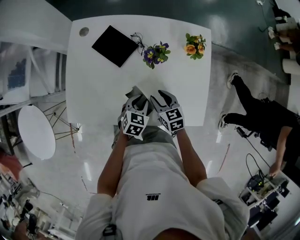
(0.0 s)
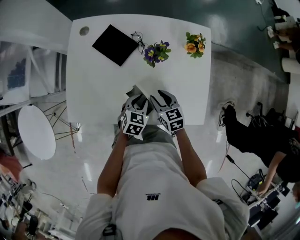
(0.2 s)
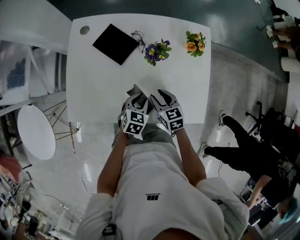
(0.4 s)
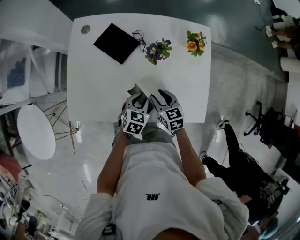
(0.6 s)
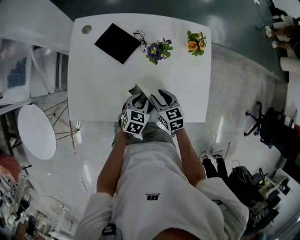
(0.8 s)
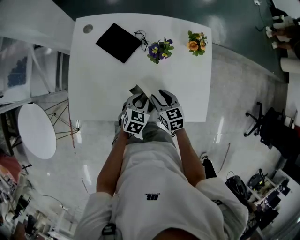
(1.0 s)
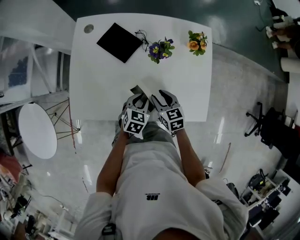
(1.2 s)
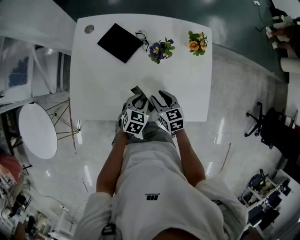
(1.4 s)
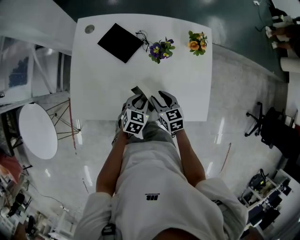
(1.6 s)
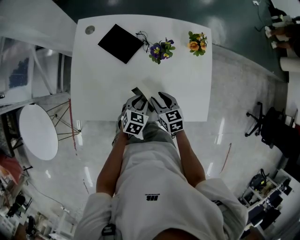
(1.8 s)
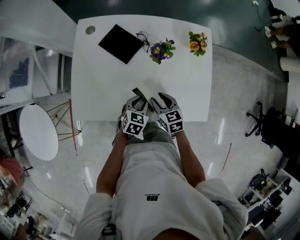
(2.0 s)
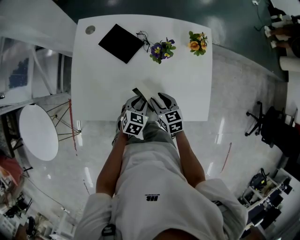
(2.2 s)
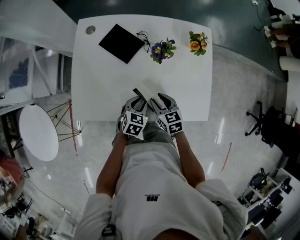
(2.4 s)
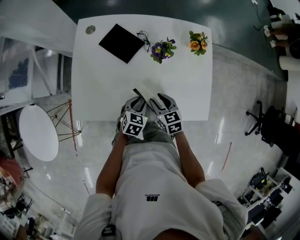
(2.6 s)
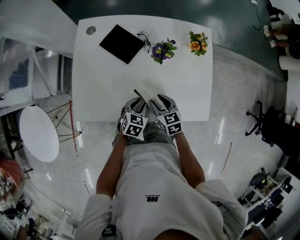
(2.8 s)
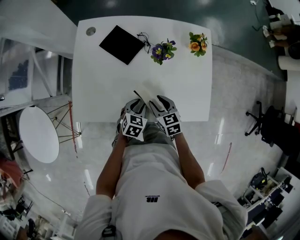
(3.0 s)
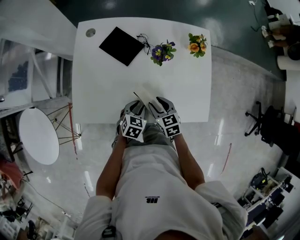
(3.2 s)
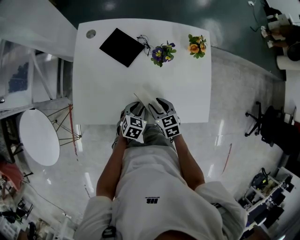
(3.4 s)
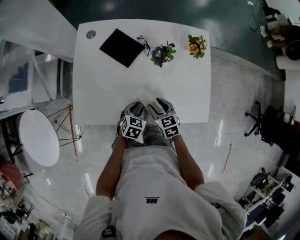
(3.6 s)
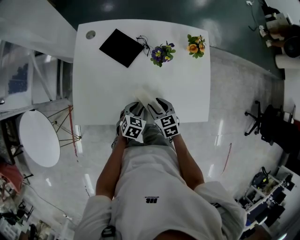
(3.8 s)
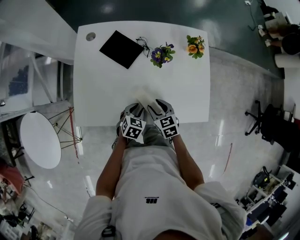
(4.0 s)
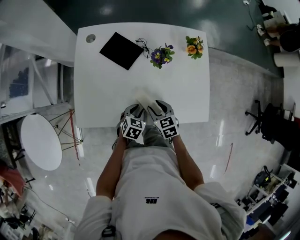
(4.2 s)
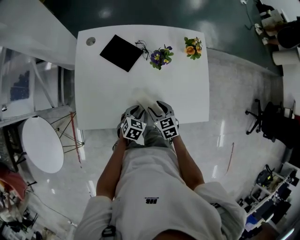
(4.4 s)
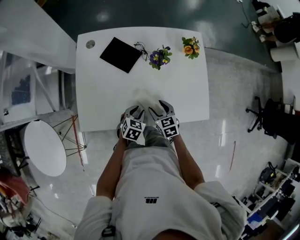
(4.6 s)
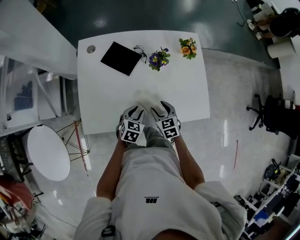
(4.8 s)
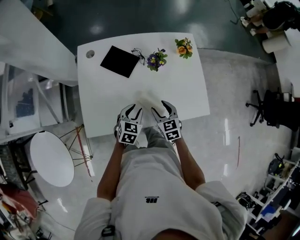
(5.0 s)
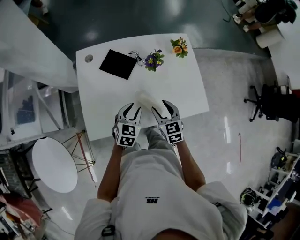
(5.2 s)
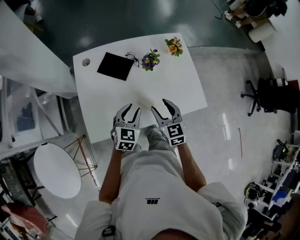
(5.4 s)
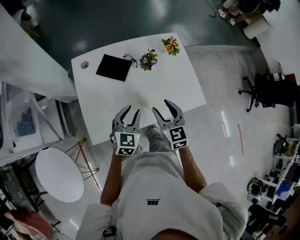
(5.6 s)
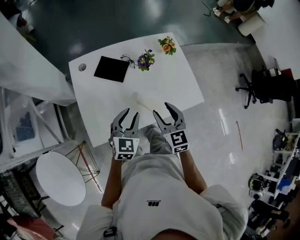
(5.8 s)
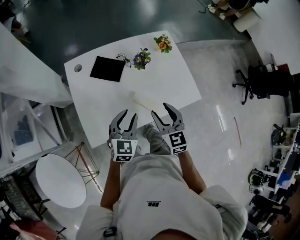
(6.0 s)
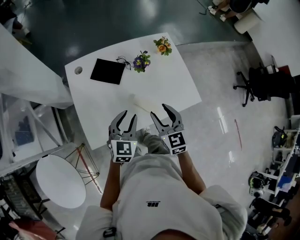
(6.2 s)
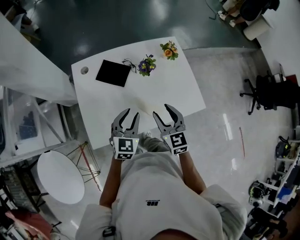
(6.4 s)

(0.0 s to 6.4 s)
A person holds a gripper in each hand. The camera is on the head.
0.0 s - 1.6 s: There are only small adjustments of the grippers.
1.6 s - 3.2 s: The grippers make only small movements.
3.2 s - 4.8 s: There are only small adjustments of the grippers.
4.8 s - 6.4 s: The grippers both shift upward by approximately 20 cm. The left gripper turns by some 30 degrees, while the right gripper rotates roughly 30 degrees.

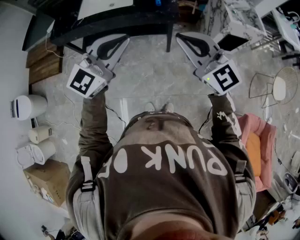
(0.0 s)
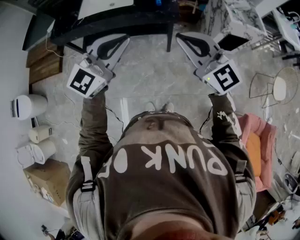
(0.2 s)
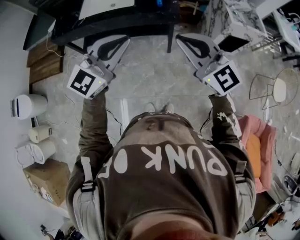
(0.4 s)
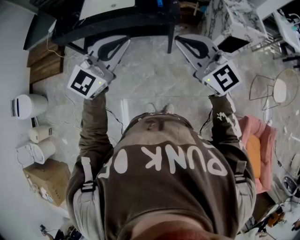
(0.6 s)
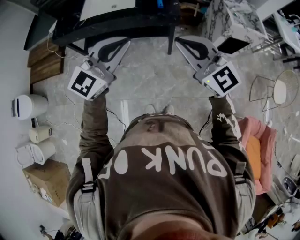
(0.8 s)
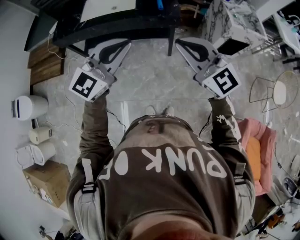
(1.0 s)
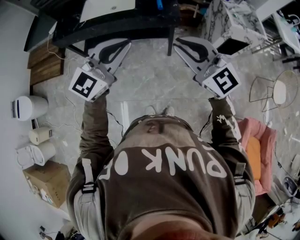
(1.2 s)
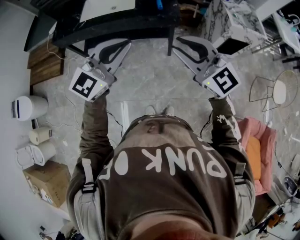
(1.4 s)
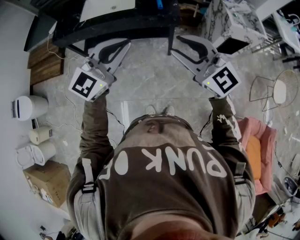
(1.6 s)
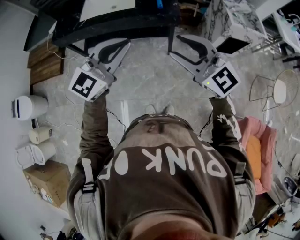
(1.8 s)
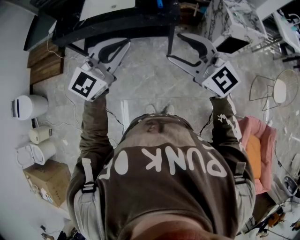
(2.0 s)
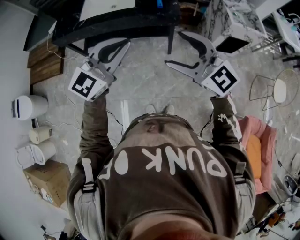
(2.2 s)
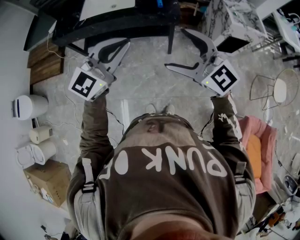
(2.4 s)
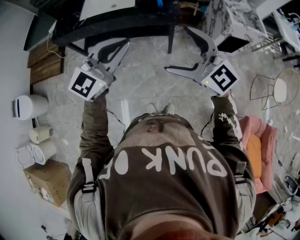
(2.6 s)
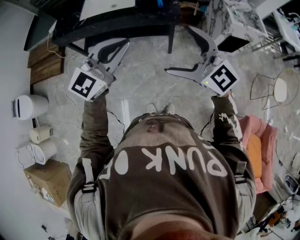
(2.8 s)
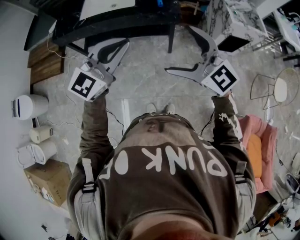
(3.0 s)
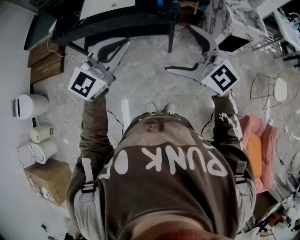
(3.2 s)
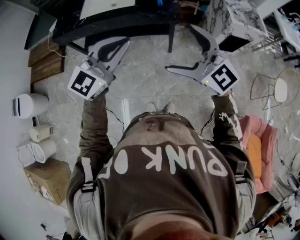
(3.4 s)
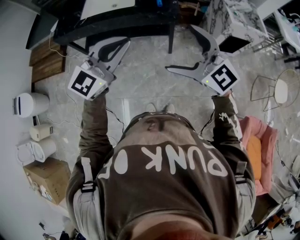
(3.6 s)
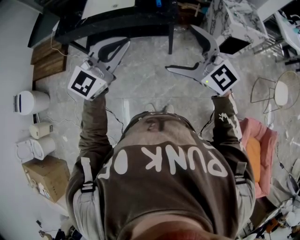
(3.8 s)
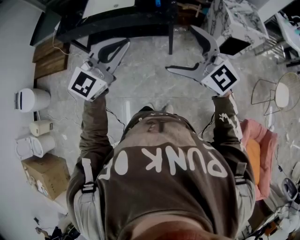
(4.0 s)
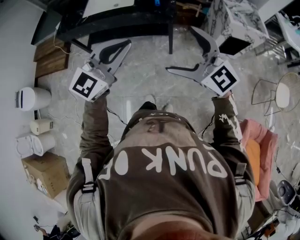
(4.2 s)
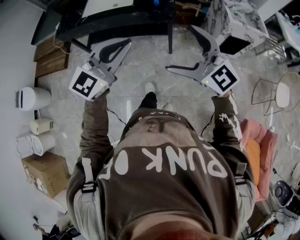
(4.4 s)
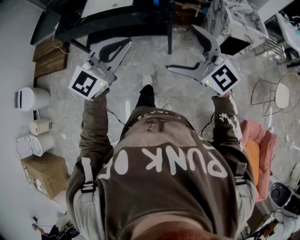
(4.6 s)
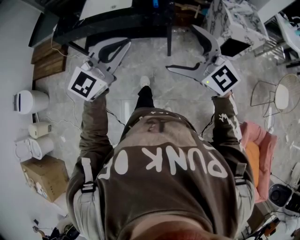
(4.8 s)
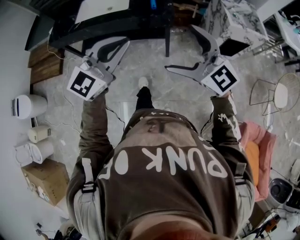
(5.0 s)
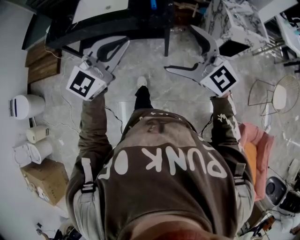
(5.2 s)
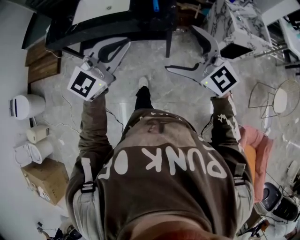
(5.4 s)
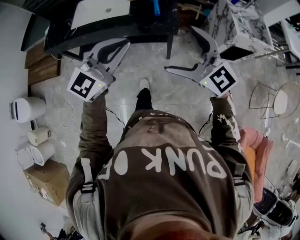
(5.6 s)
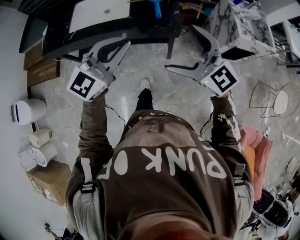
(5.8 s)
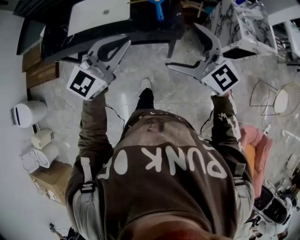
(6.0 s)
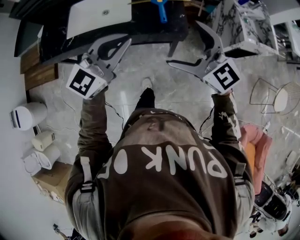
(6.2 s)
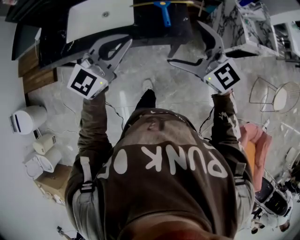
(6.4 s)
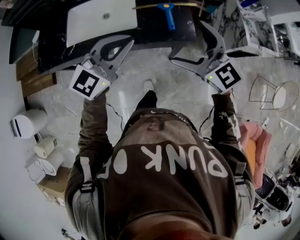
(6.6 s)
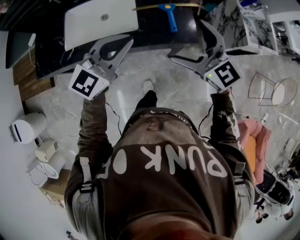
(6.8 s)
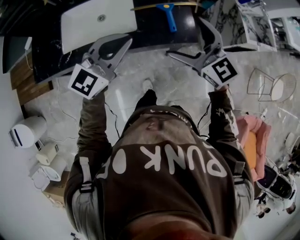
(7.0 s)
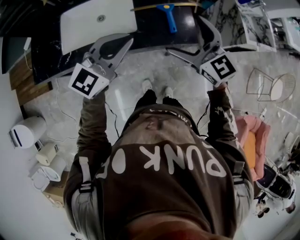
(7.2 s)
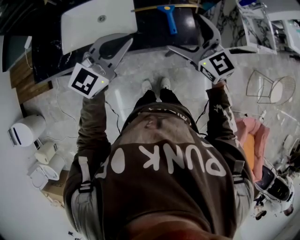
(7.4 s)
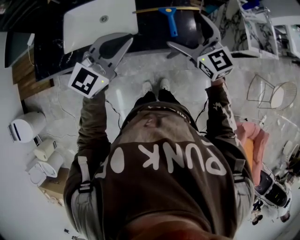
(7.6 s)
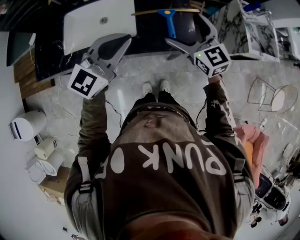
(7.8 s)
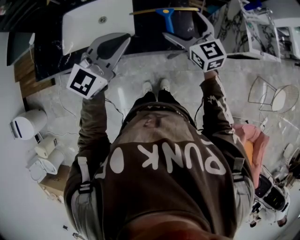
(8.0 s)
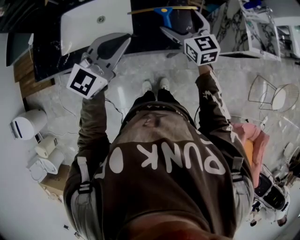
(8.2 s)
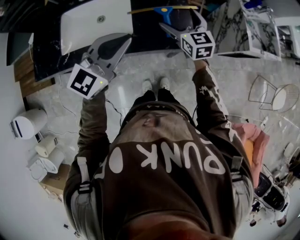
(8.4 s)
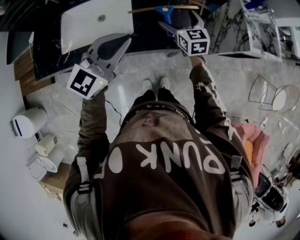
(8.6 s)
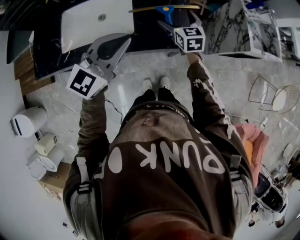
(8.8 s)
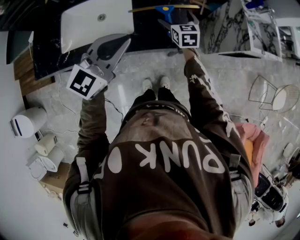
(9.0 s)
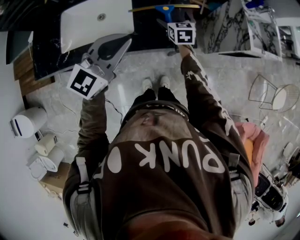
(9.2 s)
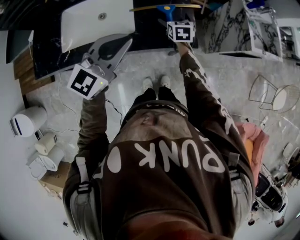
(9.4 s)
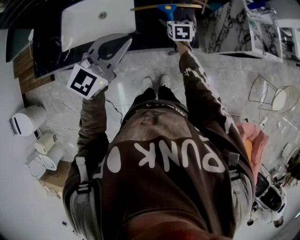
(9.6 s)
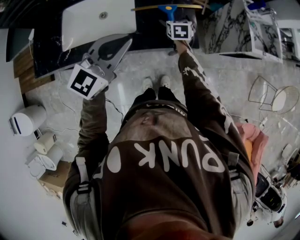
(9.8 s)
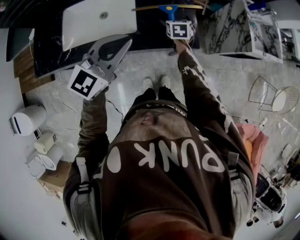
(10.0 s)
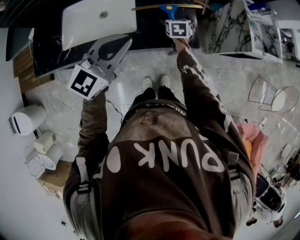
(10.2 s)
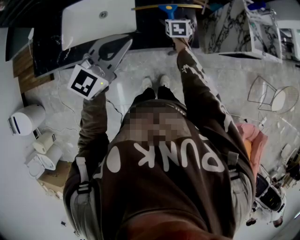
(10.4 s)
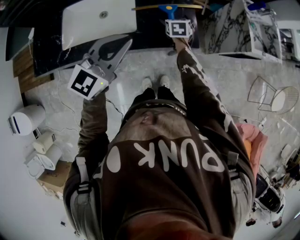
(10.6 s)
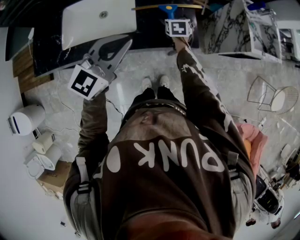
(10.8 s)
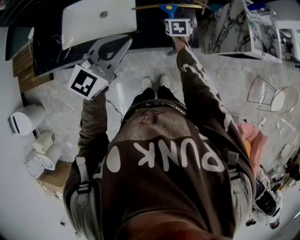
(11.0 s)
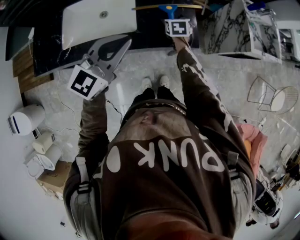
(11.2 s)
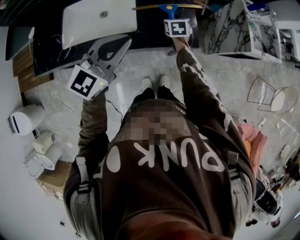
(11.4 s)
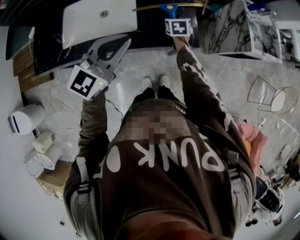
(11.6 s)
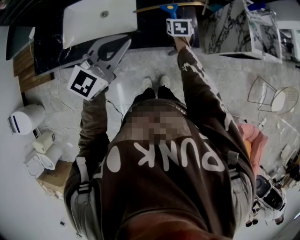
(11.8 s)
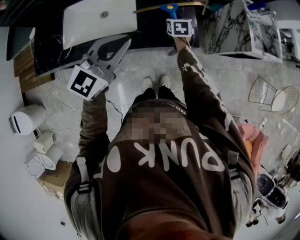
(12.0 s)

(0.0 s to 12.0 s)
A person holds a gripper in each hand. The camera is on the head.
0.0 s - 1.6 s: There are only small adjustments of the grippers.
1.6 s - 3.0 s: The right gripper opens its fingers.
3.0 s - 4.4 s: The right gripper moves to the right, approximately 5 cm; the left gripper is displaced to the right and backward by some 10 cm.
4.4 s - 6.0 s: The two grippers go roughly 30 cm forward.
6.0 s - 7.6 s: The left gripper goes roughly 20 cm forward and to the left. Meanwhile the right gripper goes about 20 cm forward.
7.6 s - 9.0 s: The right gripper travels downward and forward by roughly 20 cm, and turns by about 30 degrees.
9.0 s - 10.4 s: The right gripper moves downward, about 10 cm, and rotates about 20 degrees.
10.4 s - 12.0 s: The right gripper closes its fingers.

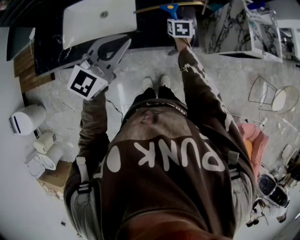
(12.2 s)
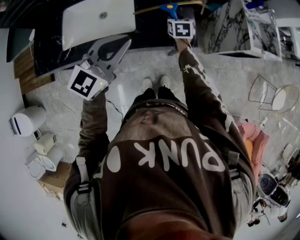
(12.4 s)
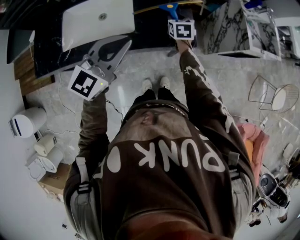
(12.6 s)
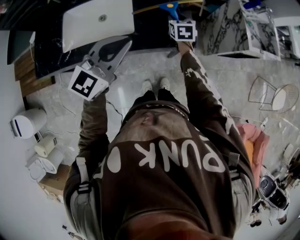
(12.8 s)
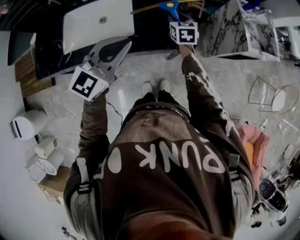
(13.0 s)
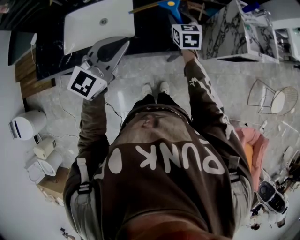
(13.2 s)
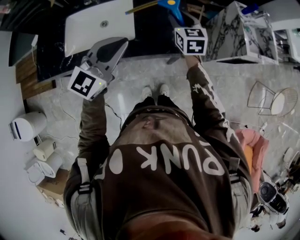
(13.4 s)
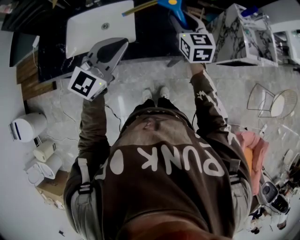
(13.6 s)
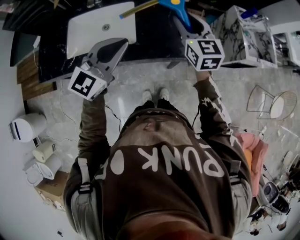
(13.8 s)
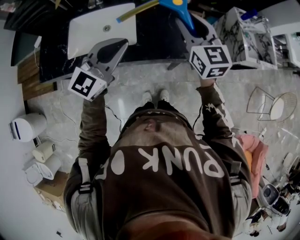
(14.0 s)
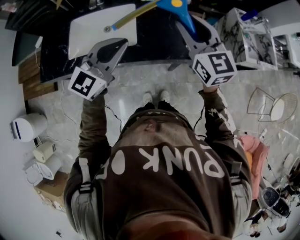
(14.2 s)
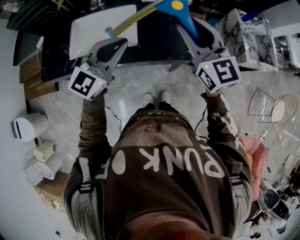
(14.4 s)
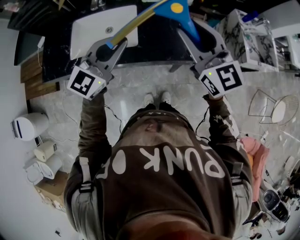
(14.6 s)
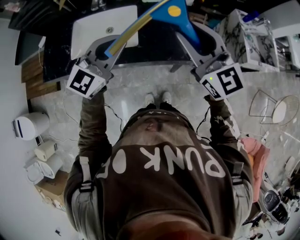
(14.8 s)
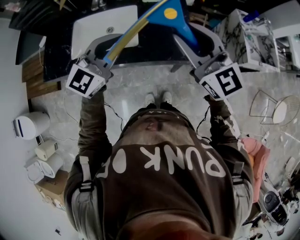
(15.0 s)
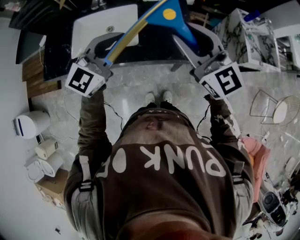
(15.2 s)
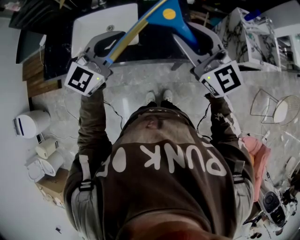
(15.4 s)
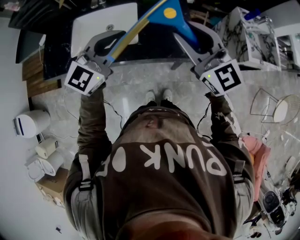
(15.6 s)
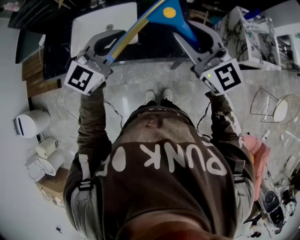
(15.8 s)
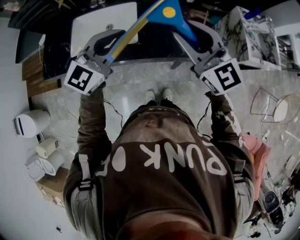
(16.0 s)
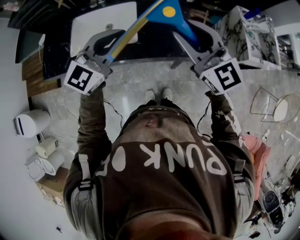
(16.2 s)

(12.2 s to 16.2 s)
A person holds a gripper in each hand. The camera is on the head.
12.2 s - 13.6 s: The right gripper goes approximately 20 cm upward, and turns by approximately 30 degrees.
13.6 s - 14.8 s: The right gripper goes roughly 20 cm upward and backward, and changes its angle by roughly 30 degrees.
14.8 s - 16.2 s: The grippers stay close to where they were, moving slightly.

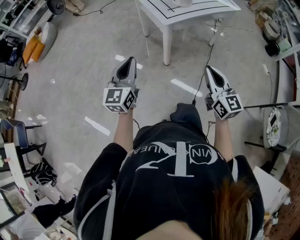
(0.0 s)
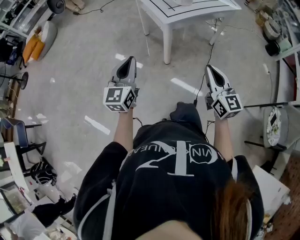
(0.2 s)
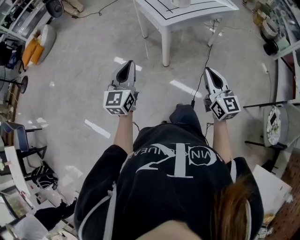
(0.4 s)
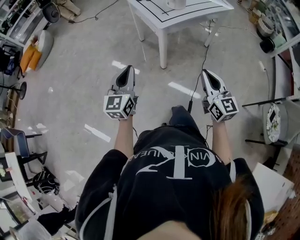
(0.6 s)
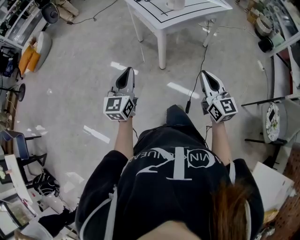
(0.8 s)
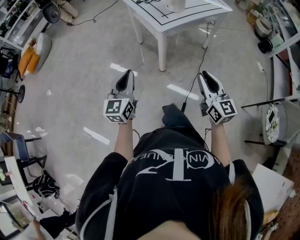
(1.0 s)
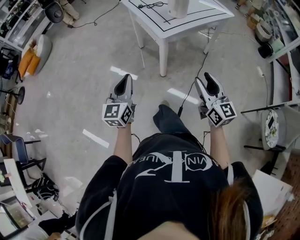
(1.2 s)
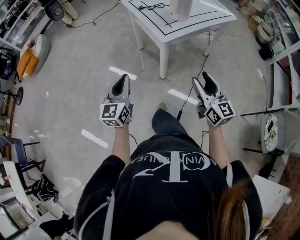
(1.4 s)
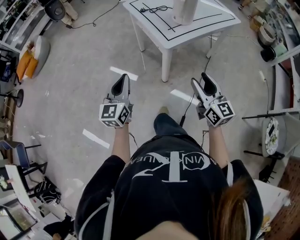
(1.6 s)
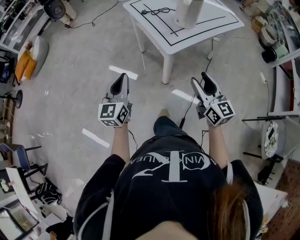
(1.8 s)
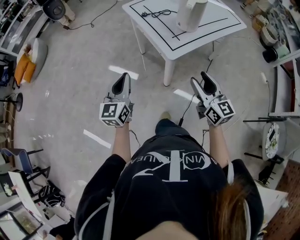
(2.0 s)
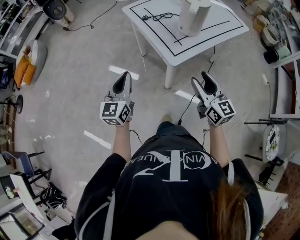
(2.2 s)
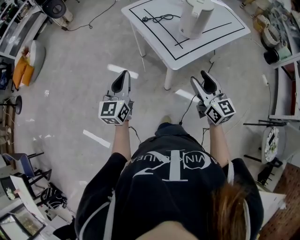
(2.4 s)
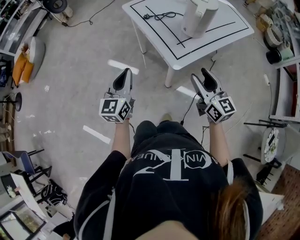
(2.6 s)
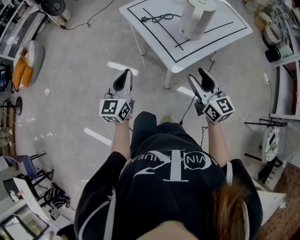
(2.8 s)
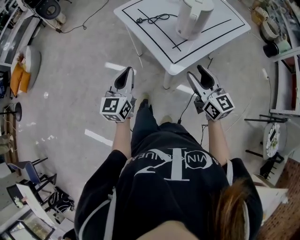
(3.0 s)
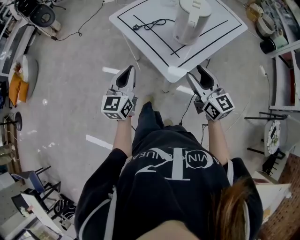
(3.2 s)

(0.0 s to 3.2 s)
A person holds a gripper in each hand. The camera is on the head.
0.0 s - 1.6 s: The grippers both shift forward by approximately 15 cm. The right gripper opens its fingers.
1.6 s - 3.2 s: Both grippers travel together forward, roughly 25 cm.
